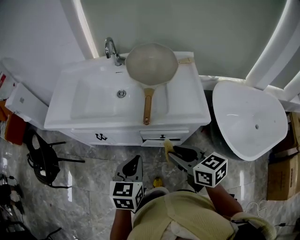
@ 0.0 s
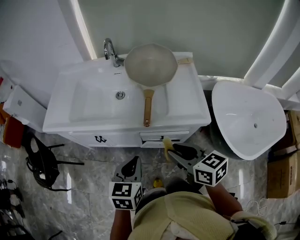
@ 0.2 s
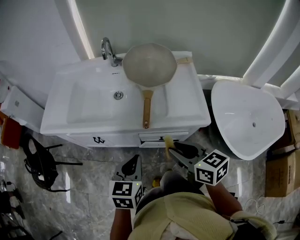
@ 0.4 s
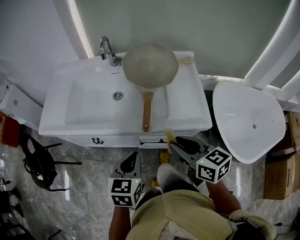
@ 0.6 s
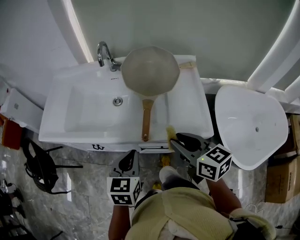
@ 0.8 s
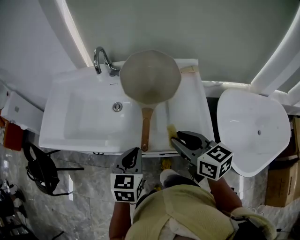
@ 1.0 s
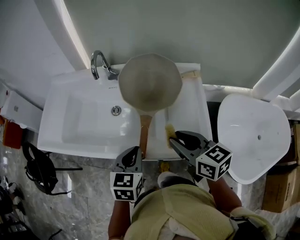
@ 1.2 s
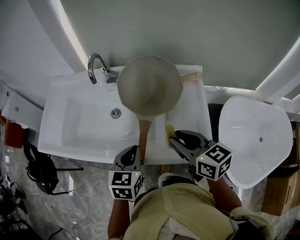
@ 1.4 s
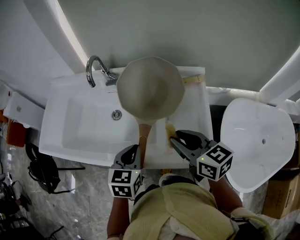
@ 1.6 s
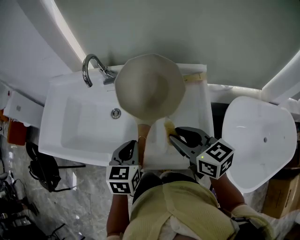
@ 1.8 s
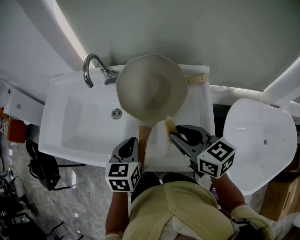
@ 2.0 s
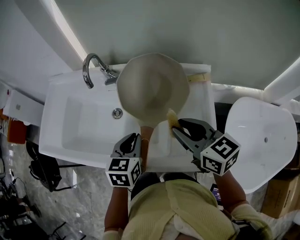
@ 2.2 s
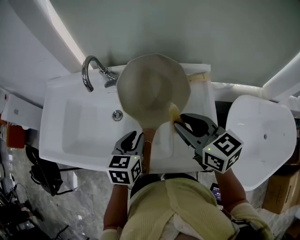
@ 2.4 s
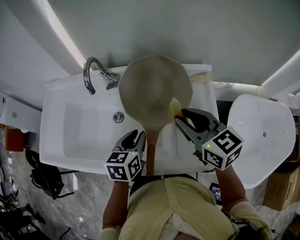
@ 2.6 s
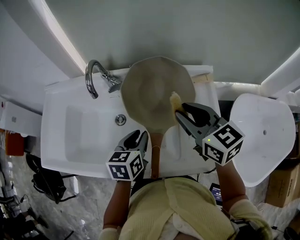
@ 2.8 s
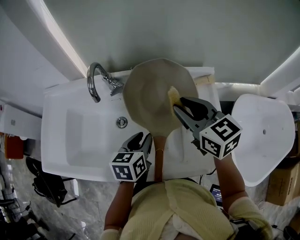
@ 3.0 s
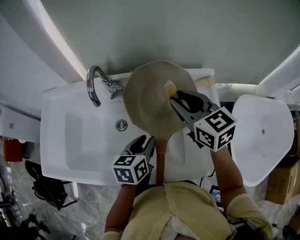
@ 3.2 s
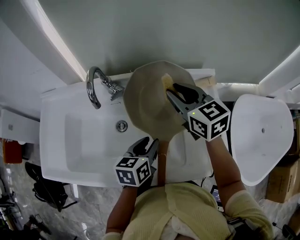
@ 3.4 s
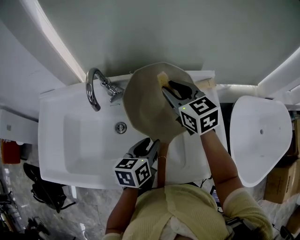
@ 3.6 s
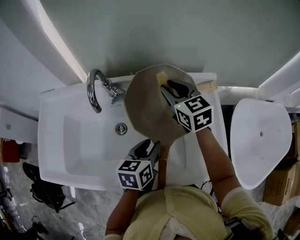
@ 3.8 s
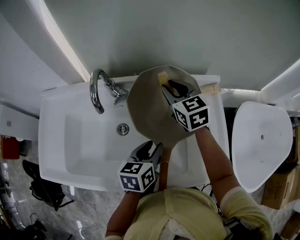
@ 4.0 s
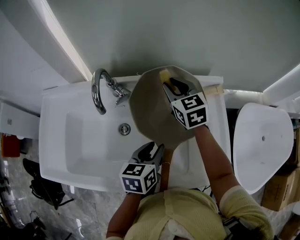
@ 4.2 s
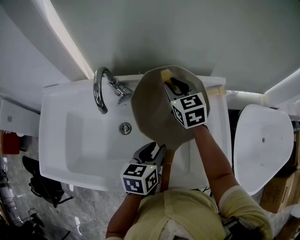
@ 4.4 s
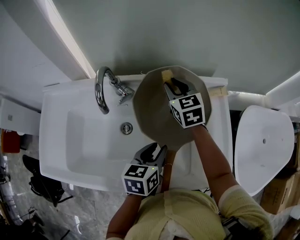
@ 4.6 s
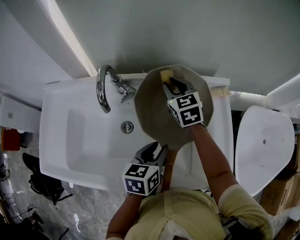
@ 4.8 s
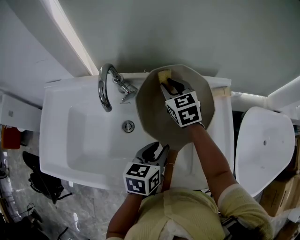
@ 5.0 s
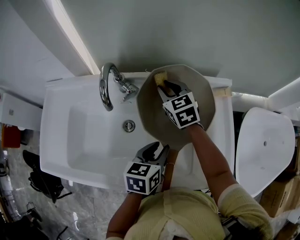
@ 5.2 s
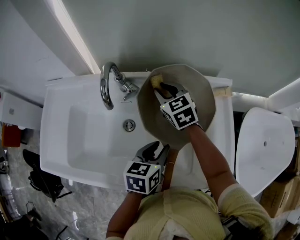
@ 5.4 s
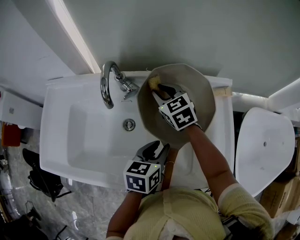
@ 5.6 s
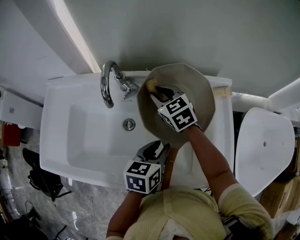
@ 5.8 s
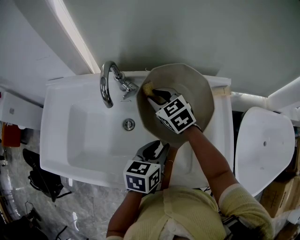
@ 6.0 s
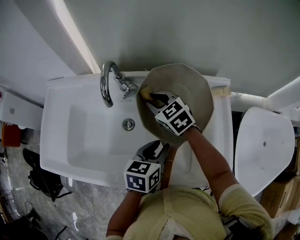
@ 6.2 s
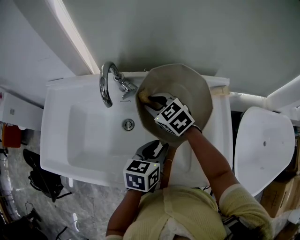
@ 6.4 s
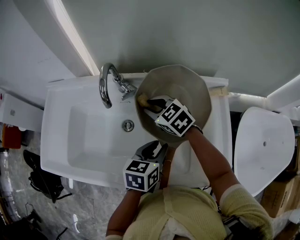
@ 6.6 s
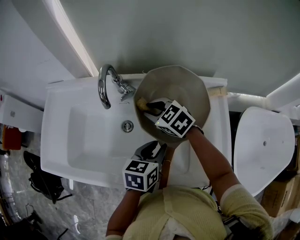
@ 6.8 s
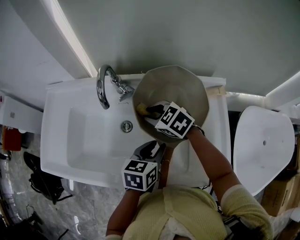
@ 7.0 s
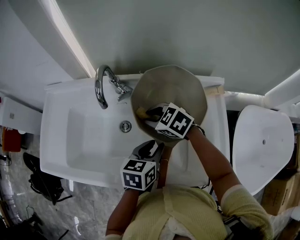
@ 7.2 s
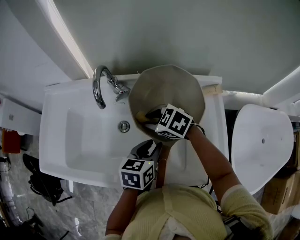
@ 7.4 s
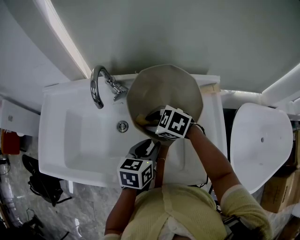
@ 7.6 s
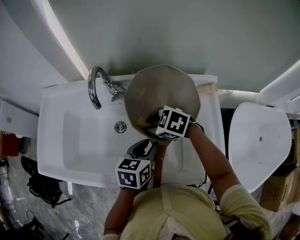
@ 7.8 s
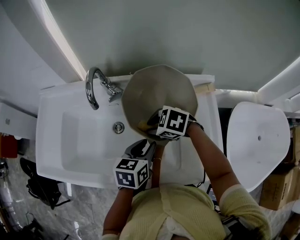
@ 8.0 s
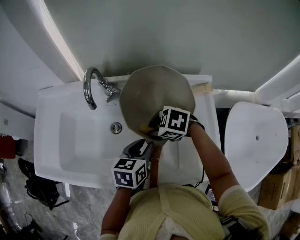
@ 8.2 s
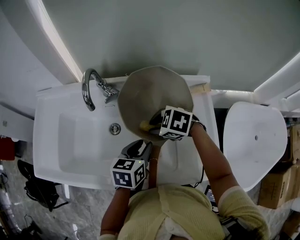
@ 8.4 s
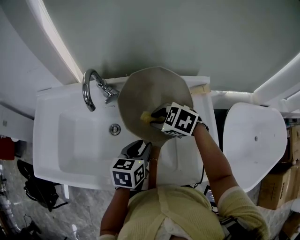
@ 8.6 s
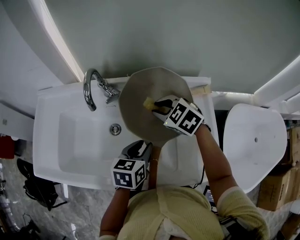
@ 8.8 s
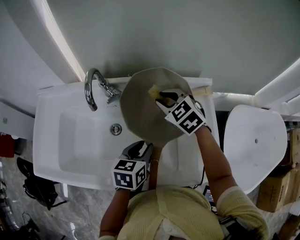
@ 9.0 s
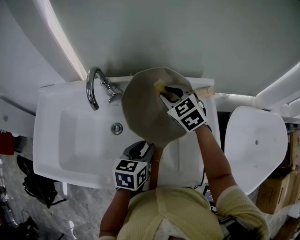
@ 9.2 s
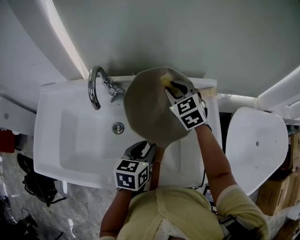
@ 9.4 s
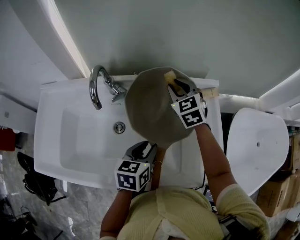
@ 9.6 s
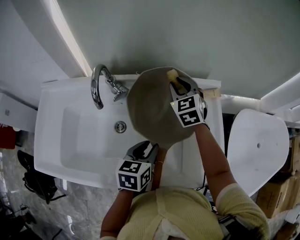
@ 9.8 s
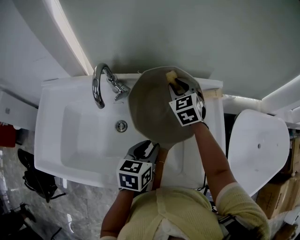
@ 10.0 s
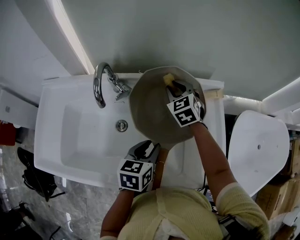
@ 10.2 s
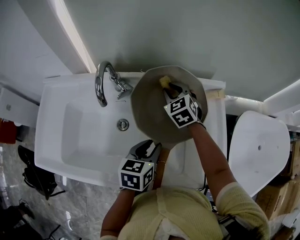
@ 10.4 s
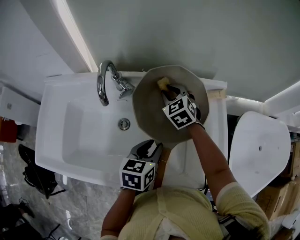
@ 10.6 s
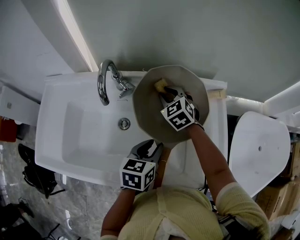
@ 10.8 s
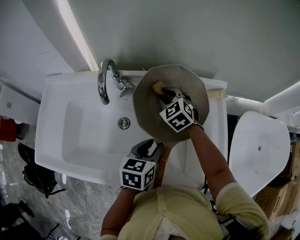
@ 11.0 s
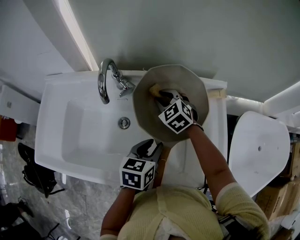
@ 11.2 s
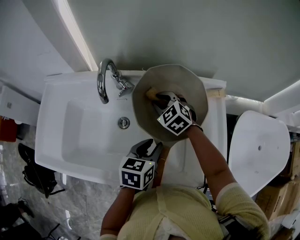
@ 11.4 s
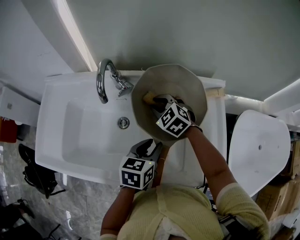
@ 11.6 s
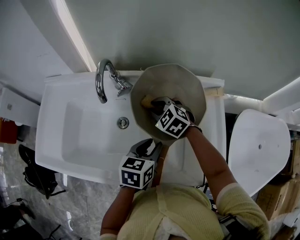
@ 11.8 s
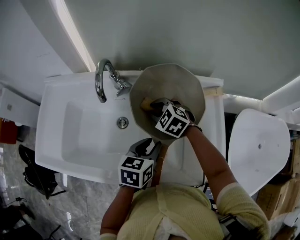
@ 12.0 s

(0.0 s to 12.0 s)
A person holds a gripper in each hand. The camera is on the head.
0.0 s - 1.6 s: The right gripper moves forward and to the right, some 25 cm. Meanwhile the left gripper moves forward, some 20 cm.
1.6 s - 3.0 s: The grippers both shift forward by approximately 15 cm. The left gripper opens up.
3.0 s - 4.4 s: The right gripper is displaced forward and downward by about 20 cm.
4.4 s - 6.0 s: The right gripper shifts about 10 cm to the left and backward, and swivels about 20 degrees.
6.0 s - 7.6 s: The right gripper travels backward by roughly 10 cm, and changes its angle by some 30 degrees.
7.6 s - 9.0 s: The right gripper ends up some 15 cm from where it was, and changes its angle by approximately 30 degrees.
9.0 s - 10.4 s: The right gripper moves forward, about 5 cm.
10.4 s - 12.0 s: The right gripper is displaced backward and to the left by about 10 cm, and turns by about 30 degrees.

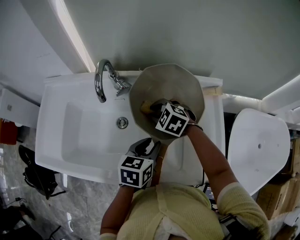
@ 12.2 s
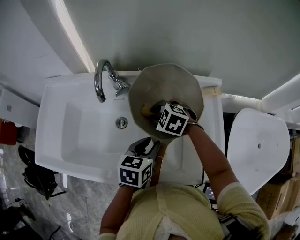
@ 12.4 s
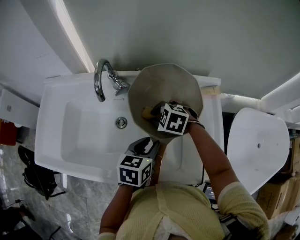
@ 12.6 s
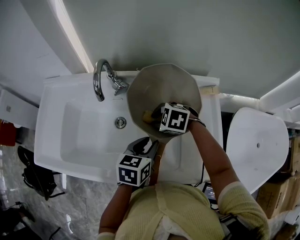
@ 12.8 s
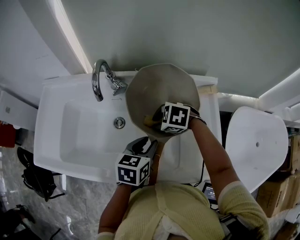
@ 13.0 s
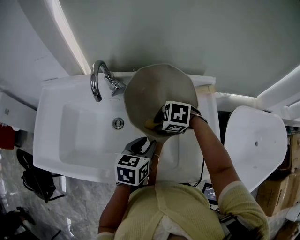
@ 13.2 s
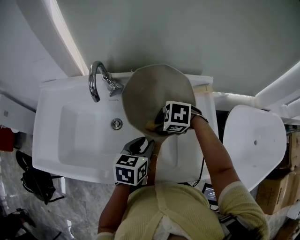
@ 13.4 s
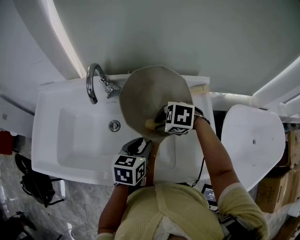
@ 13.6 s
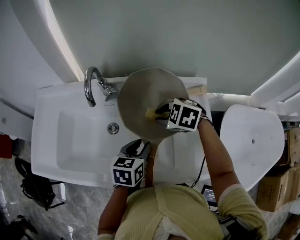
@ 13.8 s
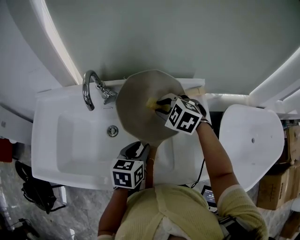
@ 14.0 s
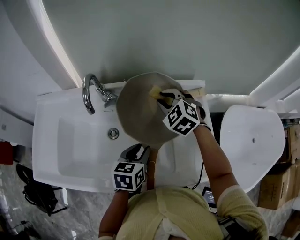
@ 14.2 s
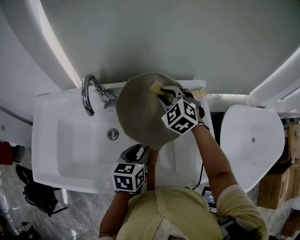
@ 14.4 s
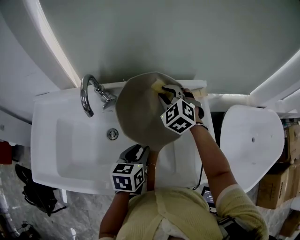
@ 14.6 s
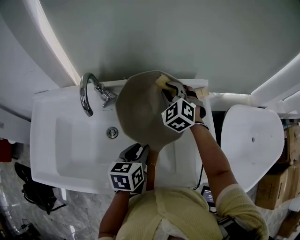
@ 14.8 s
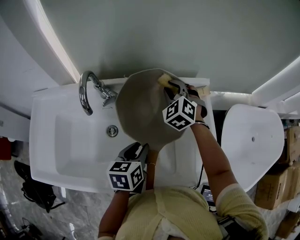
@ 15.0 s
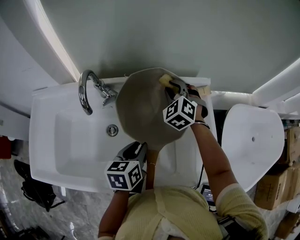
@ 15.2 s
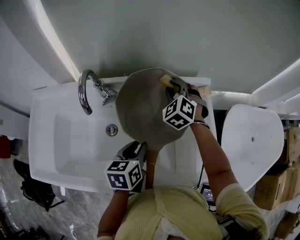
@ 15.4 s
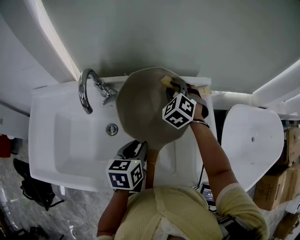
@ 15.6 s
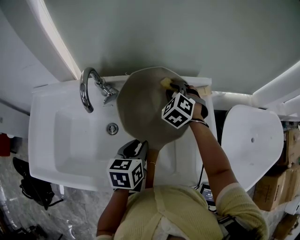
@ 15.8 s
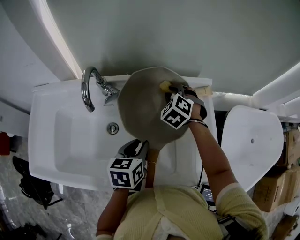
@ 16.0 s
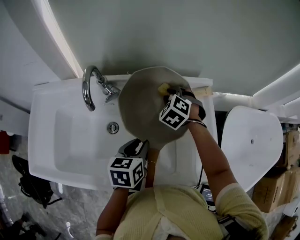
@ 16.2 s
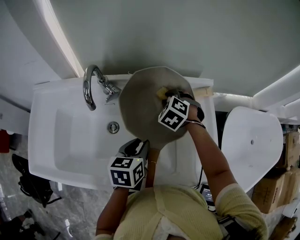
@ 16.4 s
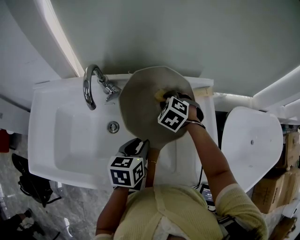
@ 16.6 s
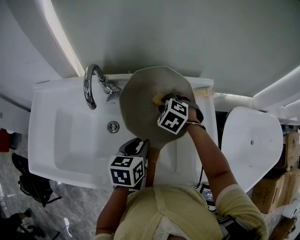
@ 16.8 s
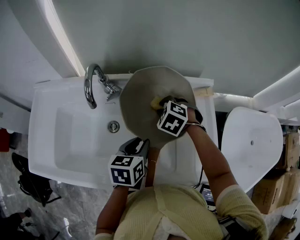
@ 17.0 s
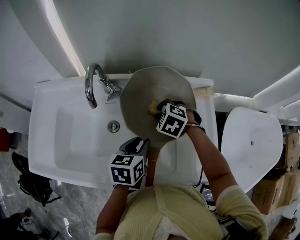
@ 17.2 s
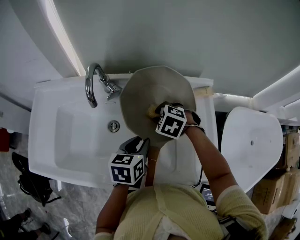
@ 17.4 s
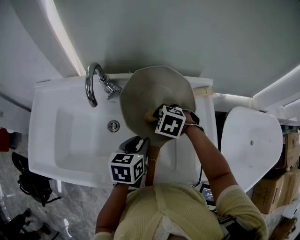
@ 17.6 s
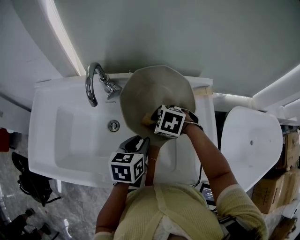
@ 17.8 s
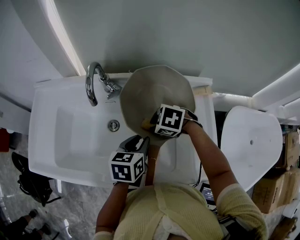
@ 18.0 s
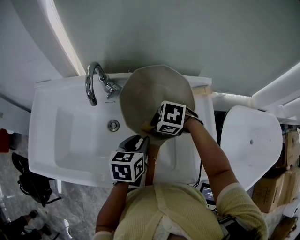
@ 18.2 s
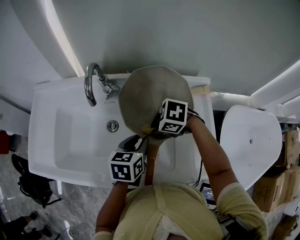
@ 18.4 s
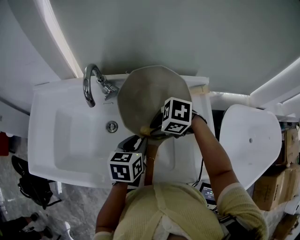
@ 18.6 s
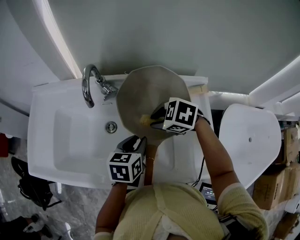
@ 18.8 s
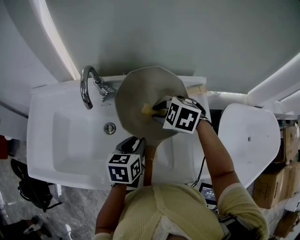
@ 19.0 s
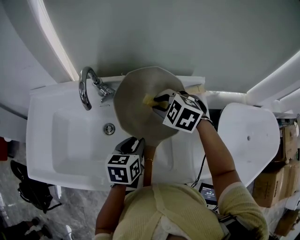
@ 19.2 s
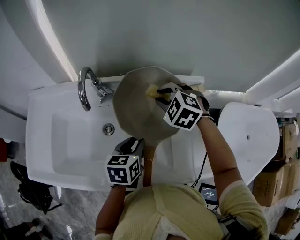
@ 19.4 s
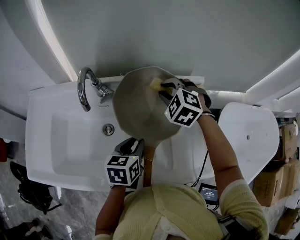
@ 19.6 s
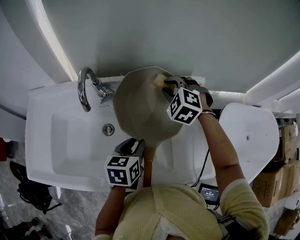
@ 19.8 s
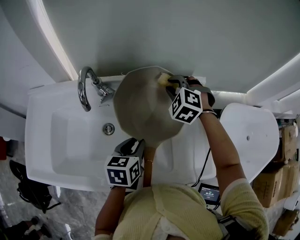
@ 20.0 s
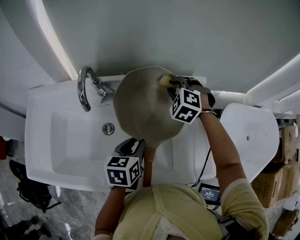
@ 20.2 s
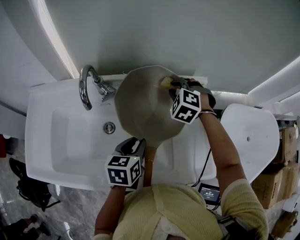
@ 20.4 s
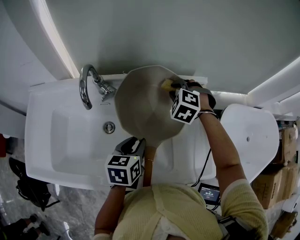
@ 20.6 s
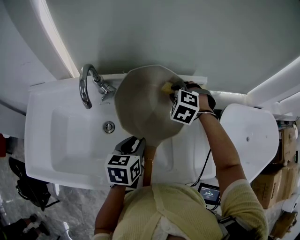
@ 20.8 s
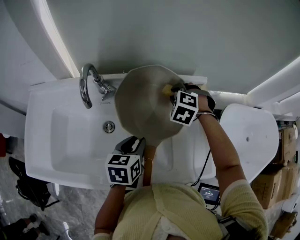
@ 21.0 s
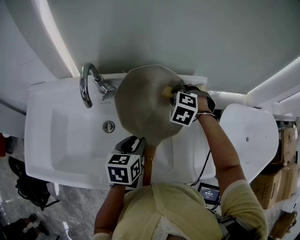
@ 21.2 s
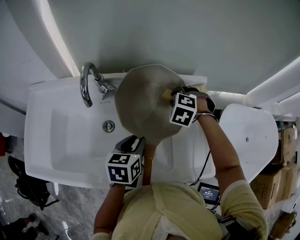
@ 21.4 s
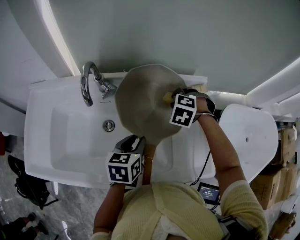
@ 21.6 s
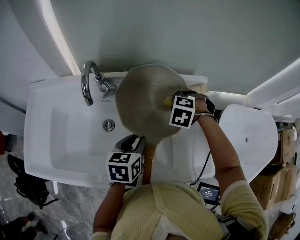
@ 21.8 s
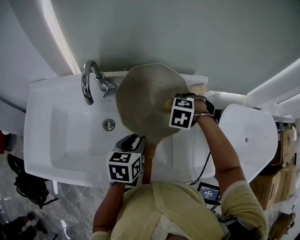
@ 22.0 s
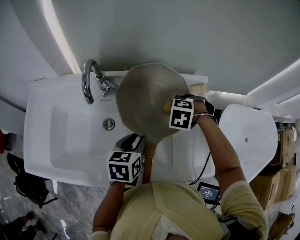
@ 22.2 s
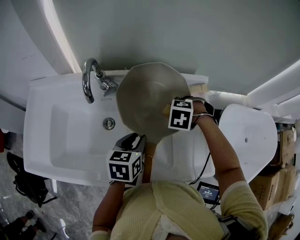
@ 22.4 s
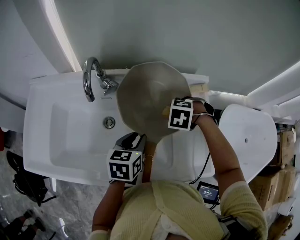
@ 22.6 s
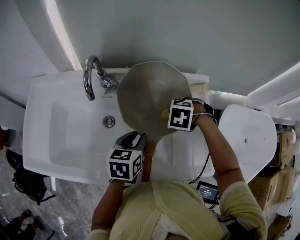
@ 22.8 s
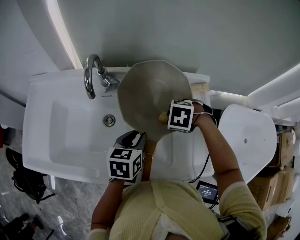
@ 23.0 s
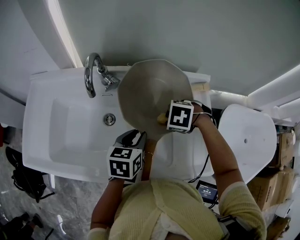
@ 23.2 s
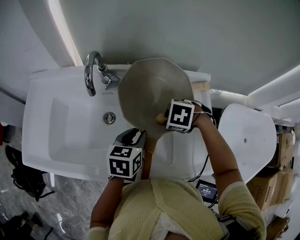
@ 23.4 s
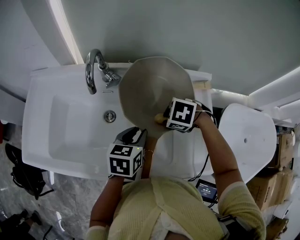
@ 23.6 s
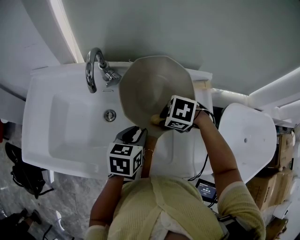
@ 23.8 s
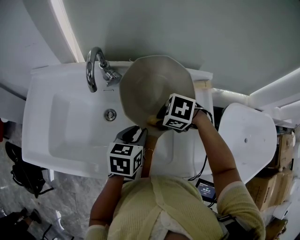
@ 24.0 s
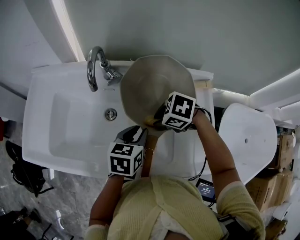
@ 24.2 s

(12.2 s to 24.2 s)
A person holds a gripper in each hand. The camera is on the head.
12.2 s - 13.8 s: The right gripper shifts by approximately 10 cm.
13.8 s - 15.2 s: The right gripper shifts by roughly 15 cm, and turns by approximately 50 degrees.
15.2 s - 16.6 s: The right gripper goes about 10 cm downward and backward, and turns by some 20 degrees.
16.6 s - 18.2 s: The right gripper ends up about 15 cm from where it was, and changes its angle by approximately 40 degrees.
18.2 s - 19.8 s: The right gripper changes place by some 20 cm, and rotates approximately 50 degrees.
19.8 s - 21.2 s: The right gripper heads downward, covering about 5 cm.
21.2 s - 22.6 s: The right gripper shifts by roughly 10 cm, and turns by approximately 20 degrees.
22.6 s - 24.2 s: The right gripper changes place by roughly 10 cm, and rotates some 30 degrees.
